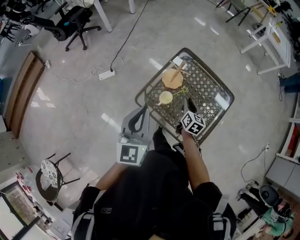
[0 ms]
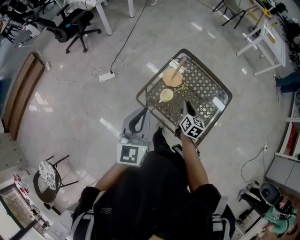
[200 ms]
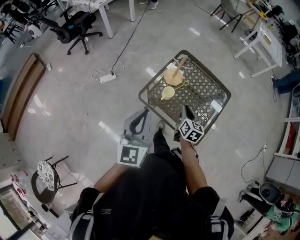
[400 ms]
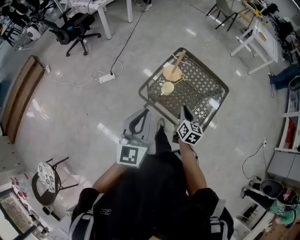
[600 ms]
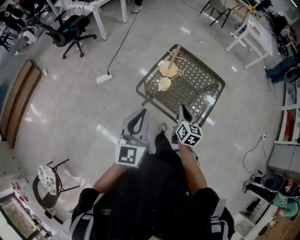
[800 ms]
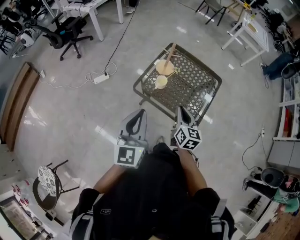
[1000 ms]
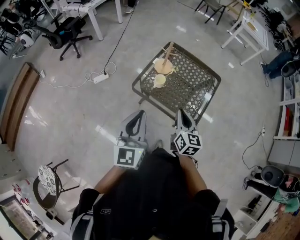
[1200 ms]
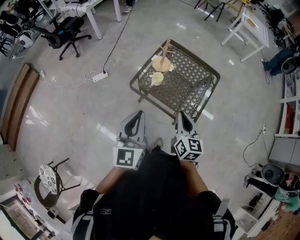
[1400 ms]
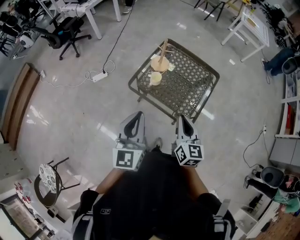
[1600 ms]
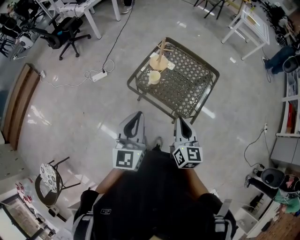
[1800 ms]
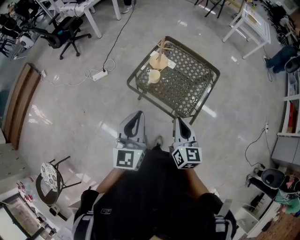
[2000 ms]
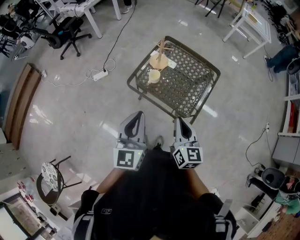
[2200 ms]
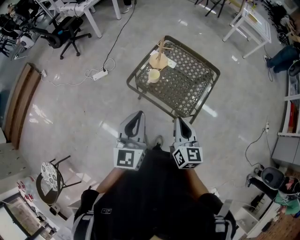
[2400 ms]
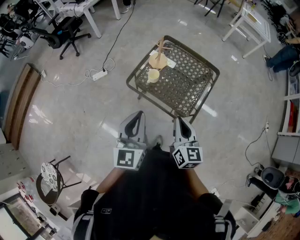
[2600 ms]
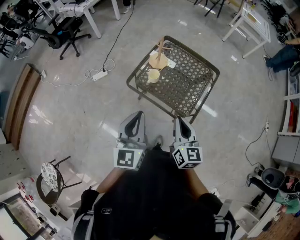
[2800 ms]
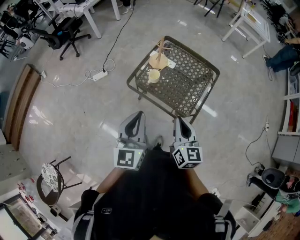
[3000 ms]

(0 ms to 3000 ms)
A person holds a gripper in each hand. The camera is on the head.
0 ms - 1600 ms: The left gripper moves backward, roughly 20 cm. Meanwhile the right gripper heads backward and upward, covering roughly 35 cm.
1600 ms - 3000 ms: There are only small adjustments of the grippers.

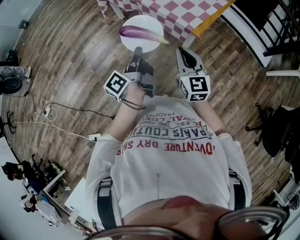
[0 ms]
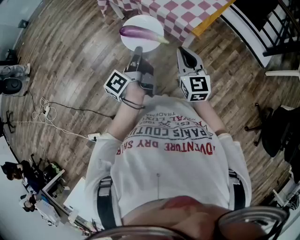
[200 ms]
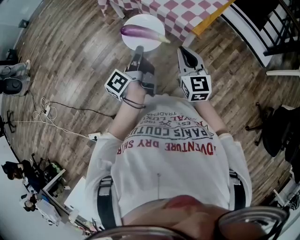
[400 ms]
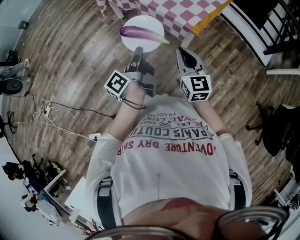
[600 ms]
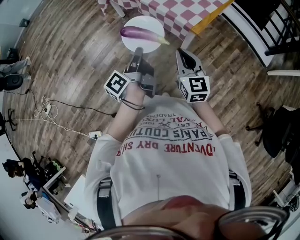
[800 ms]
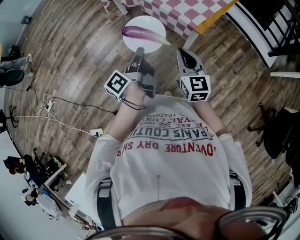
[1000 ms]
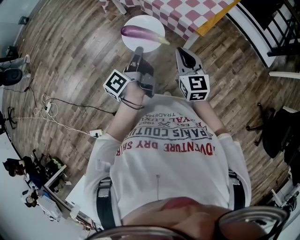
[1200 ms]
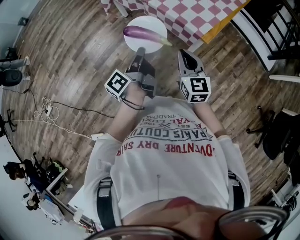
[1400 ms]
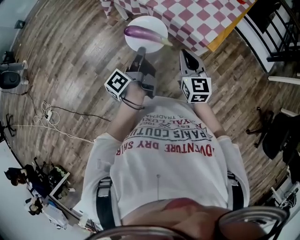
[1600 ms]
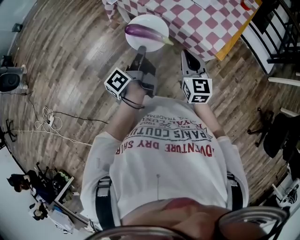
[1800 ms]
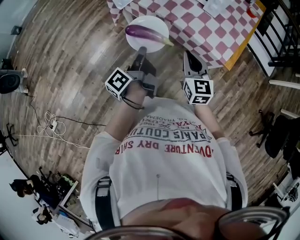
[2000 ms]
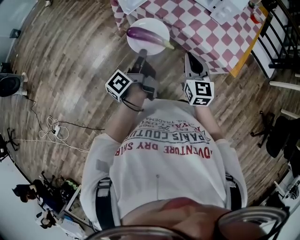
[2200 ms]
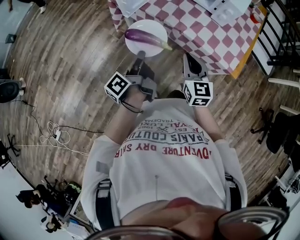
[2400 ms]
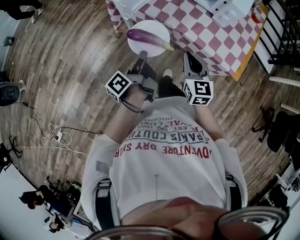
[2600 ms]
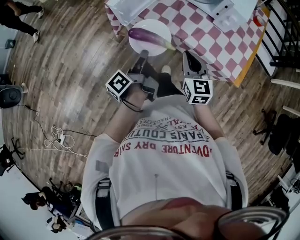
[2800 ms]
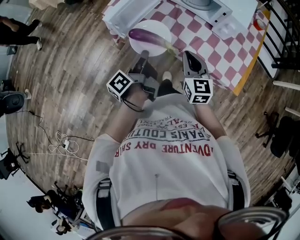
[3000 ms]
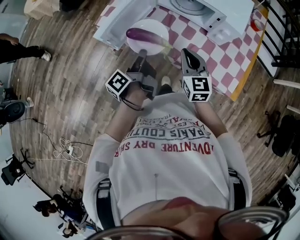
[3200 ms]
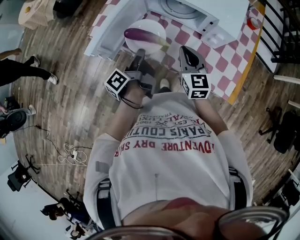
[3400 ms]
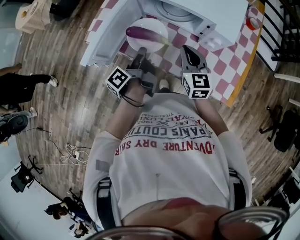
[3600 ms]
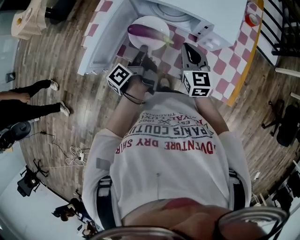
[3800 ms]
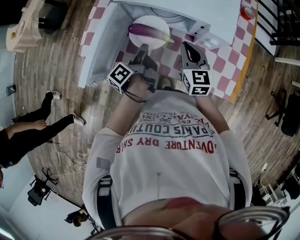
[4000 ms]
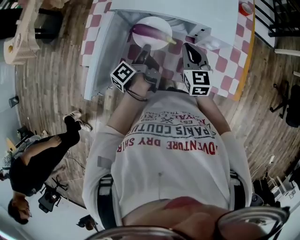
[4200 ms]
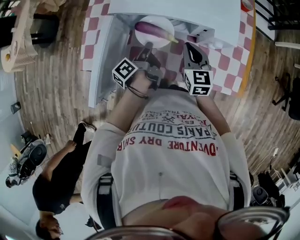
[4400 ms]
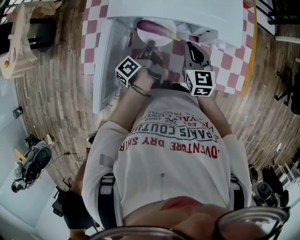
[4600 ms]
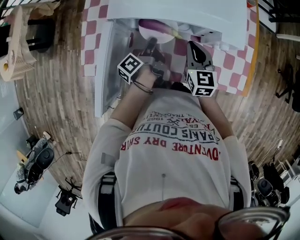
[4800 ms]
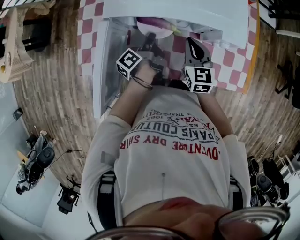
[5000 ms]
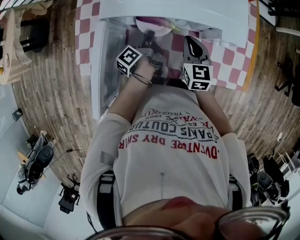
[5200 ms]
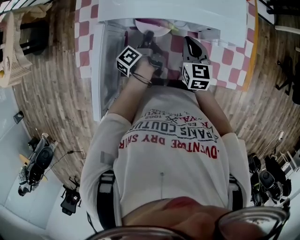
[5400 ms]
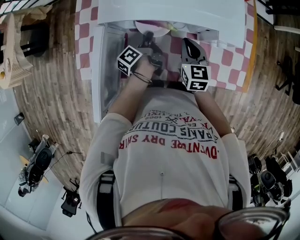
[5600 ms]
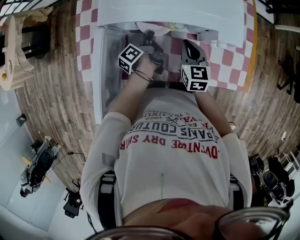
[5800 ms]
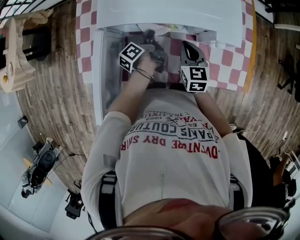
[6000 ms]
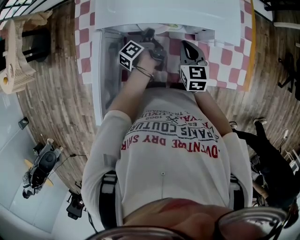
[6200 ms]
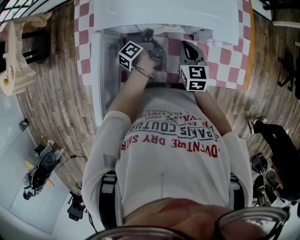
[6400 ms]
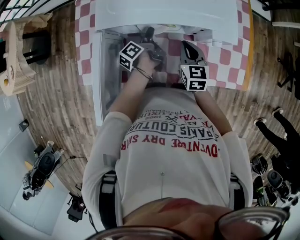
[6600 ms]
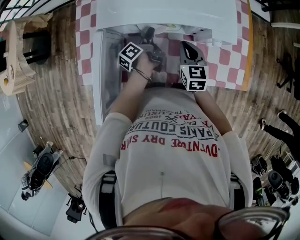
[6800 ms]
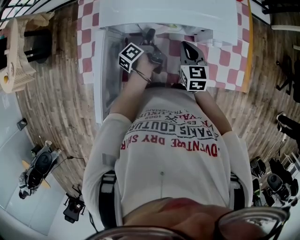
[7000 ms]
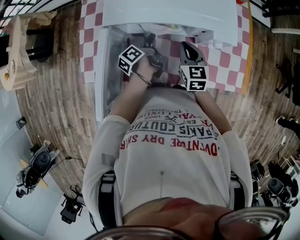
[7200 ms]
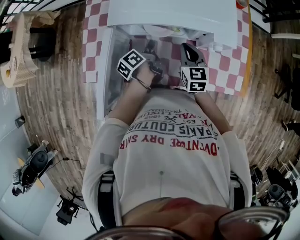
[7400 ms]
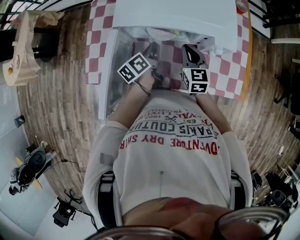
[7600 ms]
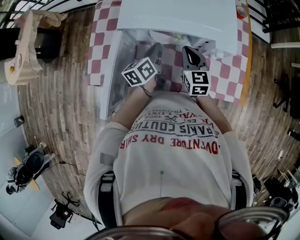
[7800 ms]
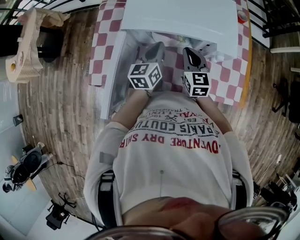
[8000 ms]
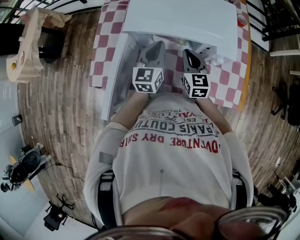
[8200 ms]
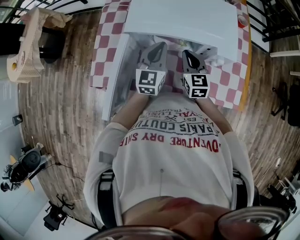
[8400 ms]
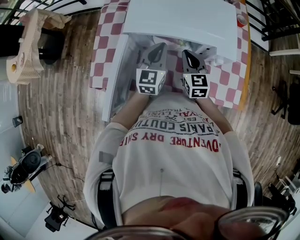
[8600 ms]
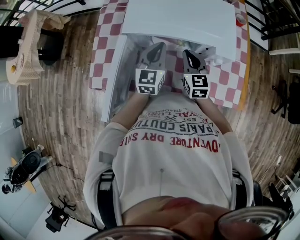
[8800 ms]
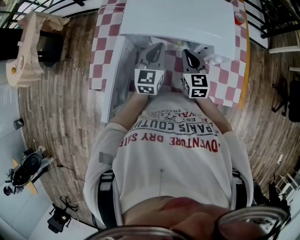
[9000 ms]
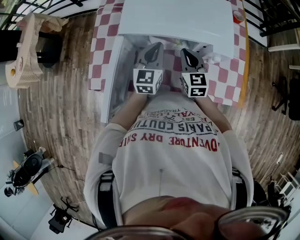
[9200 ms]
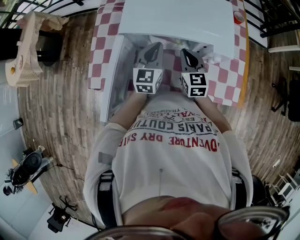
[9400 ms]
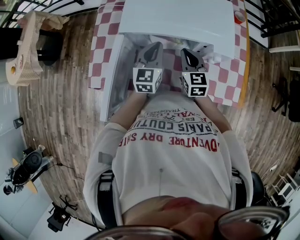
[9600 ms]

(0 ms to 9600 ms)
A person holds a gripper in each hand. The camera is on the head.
0 ms - 1600 ms: The right gripper changes place by roughly 10 cm.
1600 ms - 3200 ms: The right gripper shifts by roughly 35 cm.
3200 ms - 4800 ms: The right gripper moves roughly 20 cm, and turns by some 30 degrees.
6400 ms - 8000 ms: The right gripper heads upward, covering some 5 cm.

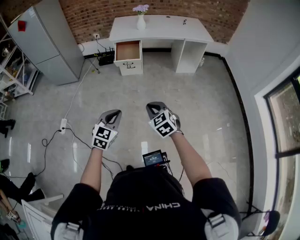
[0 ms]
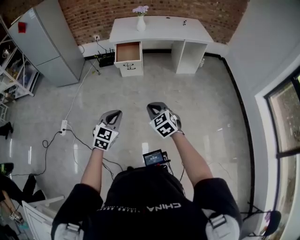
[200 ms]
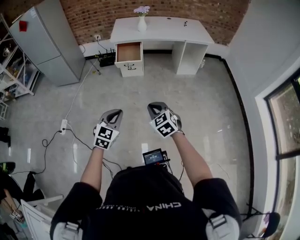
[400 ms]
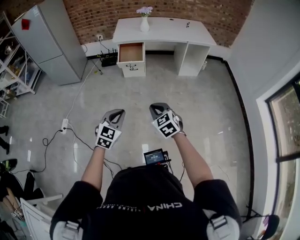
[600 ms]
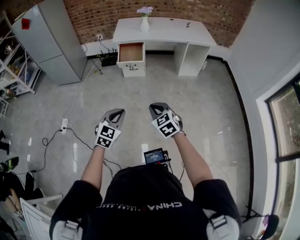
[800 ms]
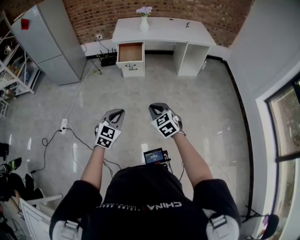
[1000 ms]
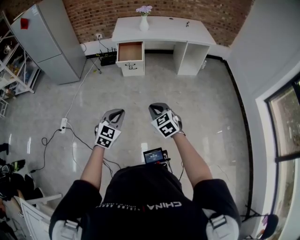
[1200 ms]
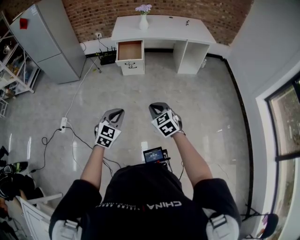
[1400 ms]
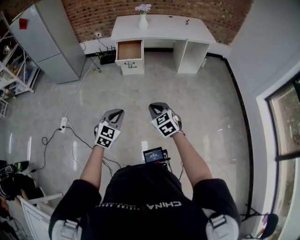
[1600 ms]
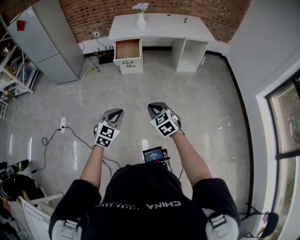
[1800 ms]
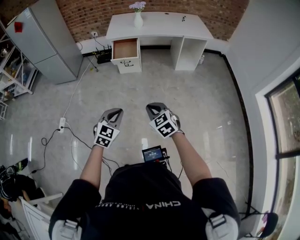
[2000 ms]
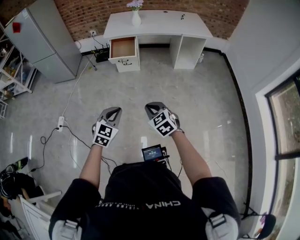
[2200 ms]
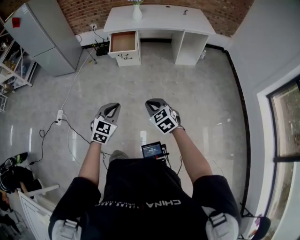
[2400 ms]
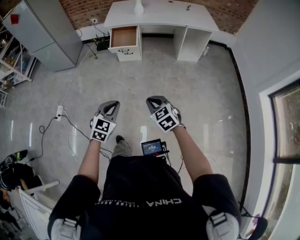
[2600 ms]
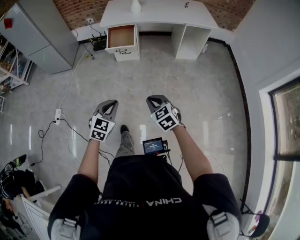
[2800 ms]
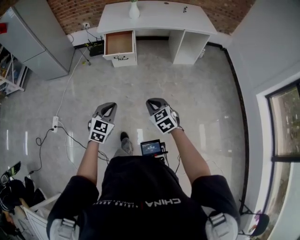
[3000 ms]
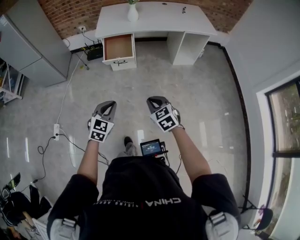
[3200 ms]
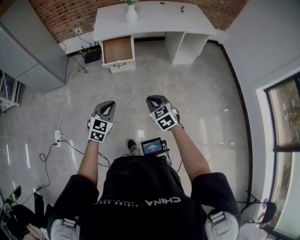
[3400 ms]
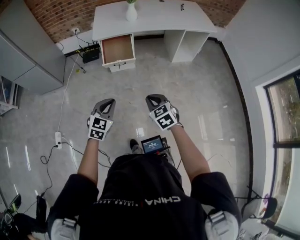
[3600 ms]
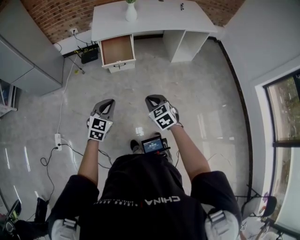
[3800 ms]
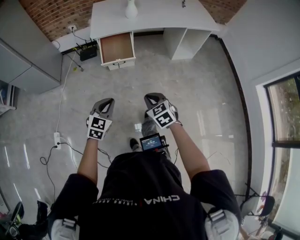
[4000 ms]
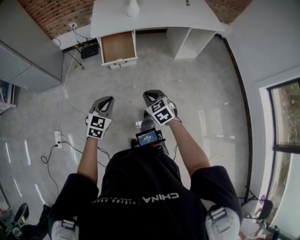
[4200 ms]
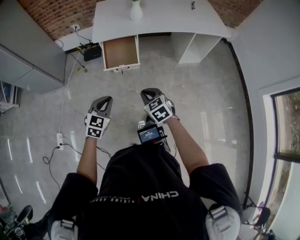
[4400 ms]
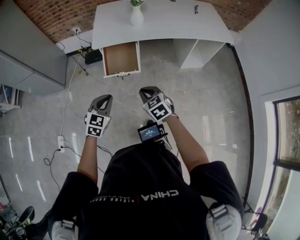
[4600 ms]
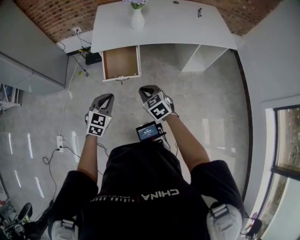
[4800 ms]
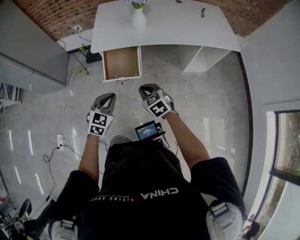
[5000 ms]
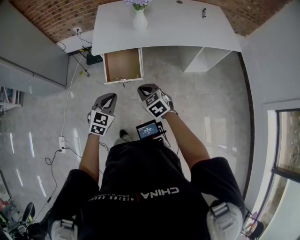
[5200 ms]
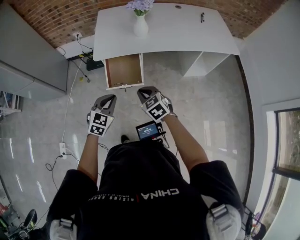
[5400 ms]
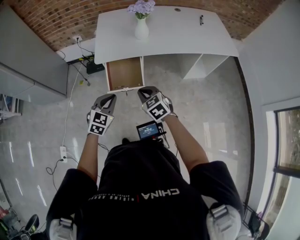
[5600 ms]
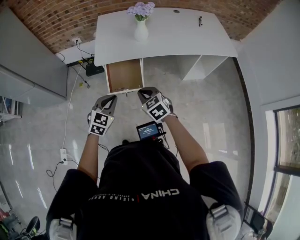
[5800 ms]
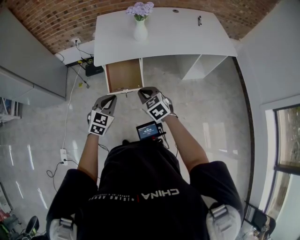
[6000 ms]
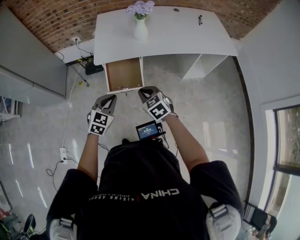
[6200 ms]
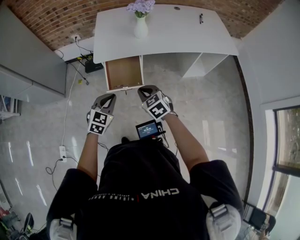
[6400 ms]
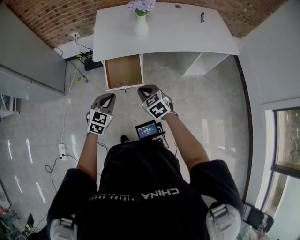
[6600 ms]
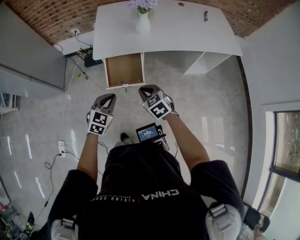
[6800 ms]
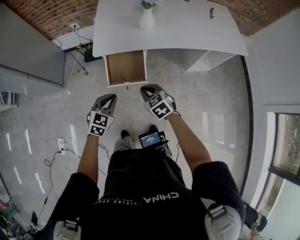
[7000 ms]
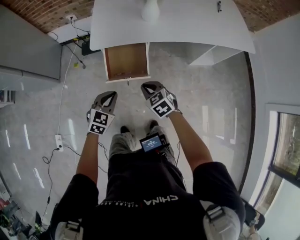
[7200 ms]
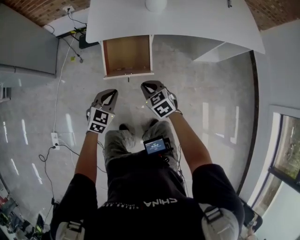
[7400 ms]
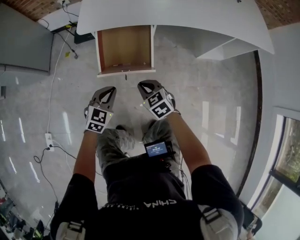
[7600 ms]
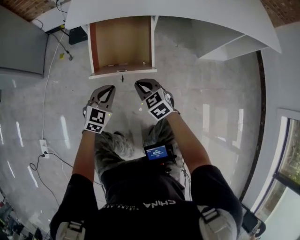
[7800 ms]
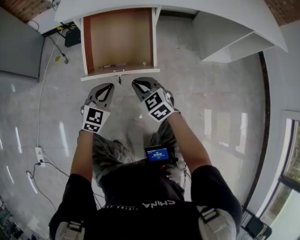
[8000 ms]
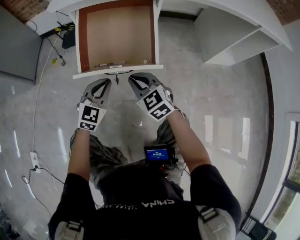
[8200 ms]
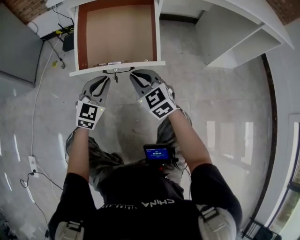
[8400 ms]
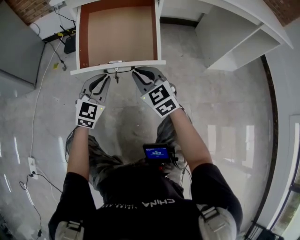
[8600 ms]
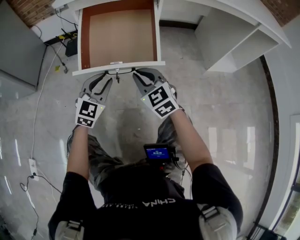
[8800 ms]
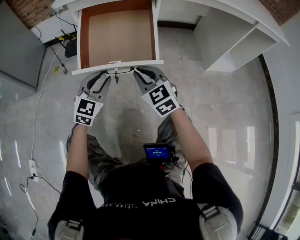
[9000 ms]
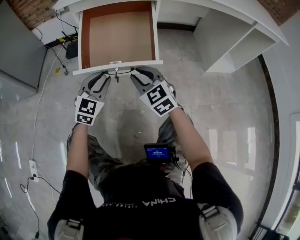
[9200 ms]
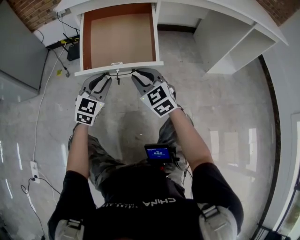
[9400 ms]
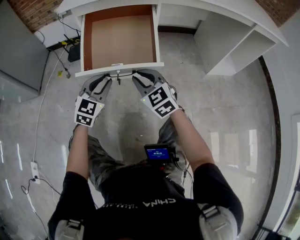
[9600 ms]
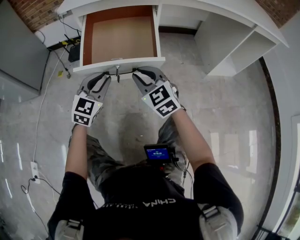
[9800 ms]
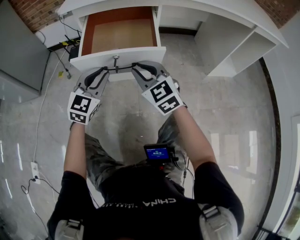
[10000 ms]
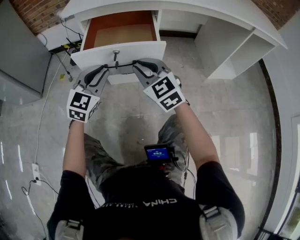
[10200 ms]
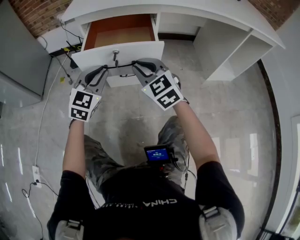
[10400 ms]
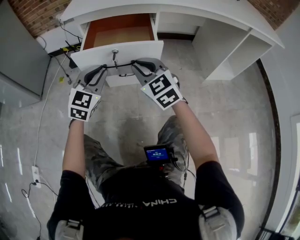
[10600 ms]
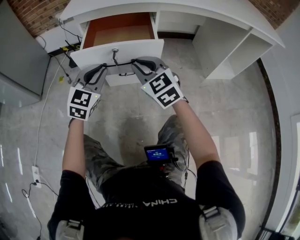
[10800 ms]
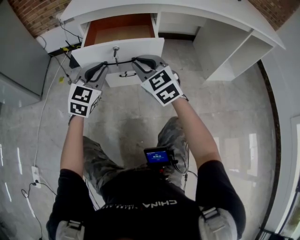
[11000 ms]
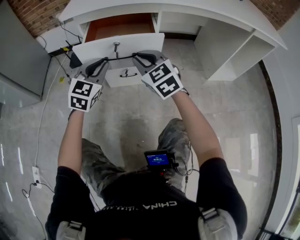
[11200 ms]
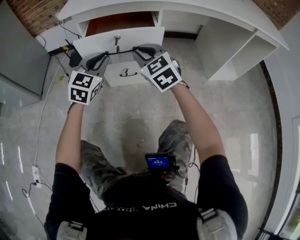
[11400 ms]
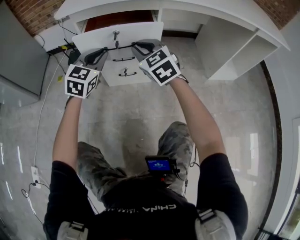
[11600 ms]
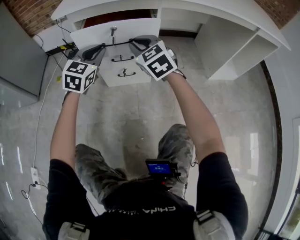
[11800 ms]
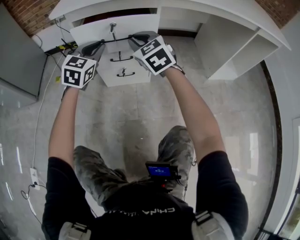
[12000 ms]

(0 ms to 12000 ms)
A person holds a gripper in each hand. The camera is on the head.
0 ms - 1600 ms: The grippers move only a little.
1600 ms - 3000 ms: The right gripper travels forward and downward by about 15 cm. The left gripper shifts approximately 15 cm forward.
3000 ms - 4400 ms: Both grippers travel together forward and to the left, about 35 cm.
4400 ms - 6000 ms: The two grippers go roughly 20 cm forward.
6000 ms - 7600 ms: The grippers both shift downward by some 30 cm.
7600 ms - 9000 ms: The right gripper travels downward and forward by about 20 cm, and turns by roughly 30 degrees; the left gripper shifts about 20 cm downward, turns by some 20 degrees, and opens its fingers.
9000 ms - 10400 ms: The grippers both shift upward by about 10 cm.
10400 ms - 12000 ms: The two grippers go some 15 cm forward.
